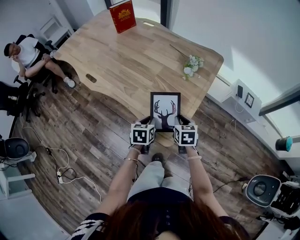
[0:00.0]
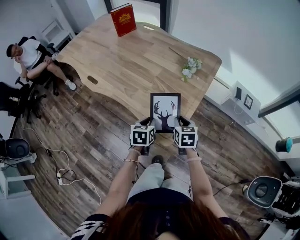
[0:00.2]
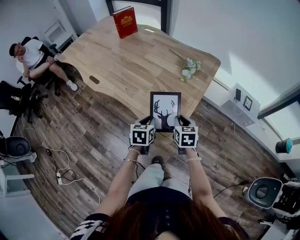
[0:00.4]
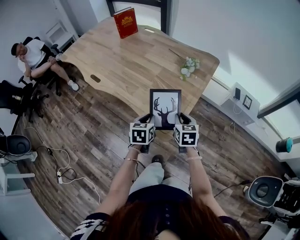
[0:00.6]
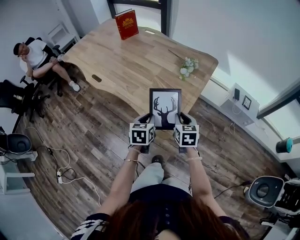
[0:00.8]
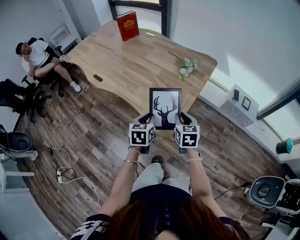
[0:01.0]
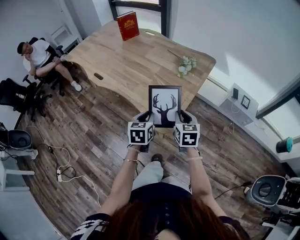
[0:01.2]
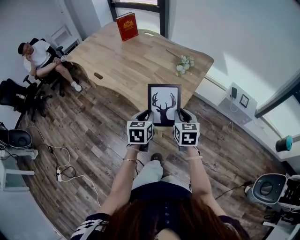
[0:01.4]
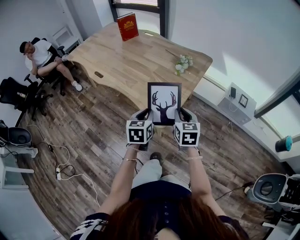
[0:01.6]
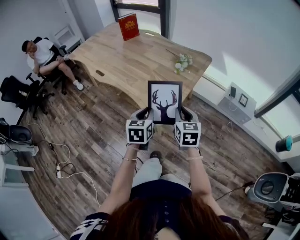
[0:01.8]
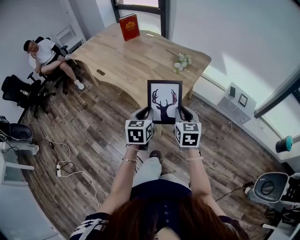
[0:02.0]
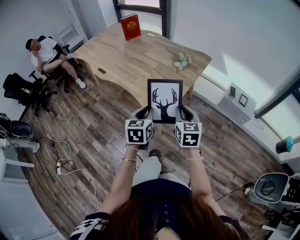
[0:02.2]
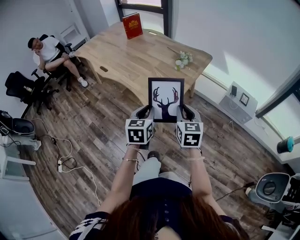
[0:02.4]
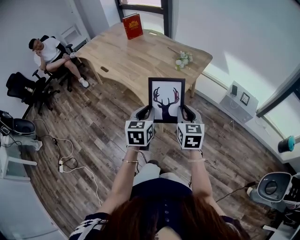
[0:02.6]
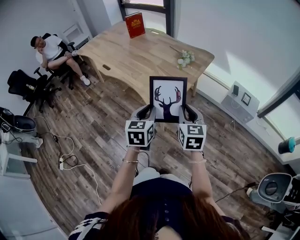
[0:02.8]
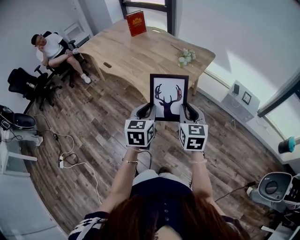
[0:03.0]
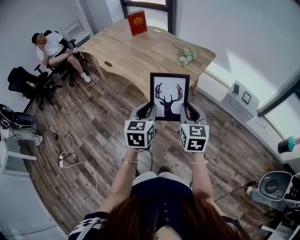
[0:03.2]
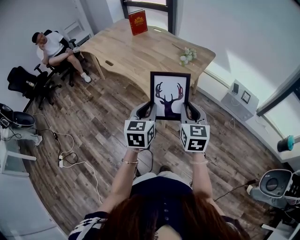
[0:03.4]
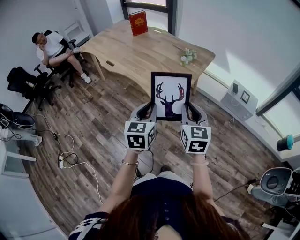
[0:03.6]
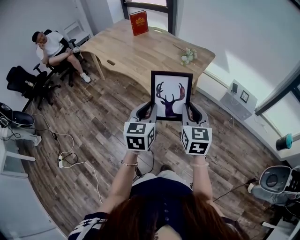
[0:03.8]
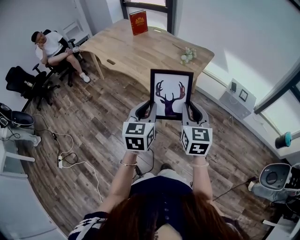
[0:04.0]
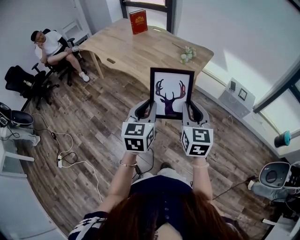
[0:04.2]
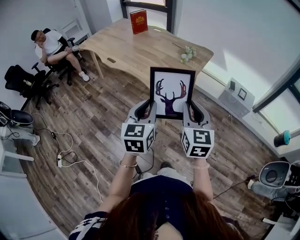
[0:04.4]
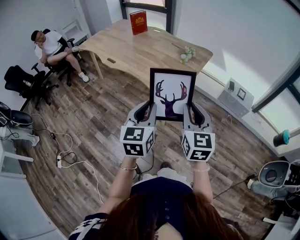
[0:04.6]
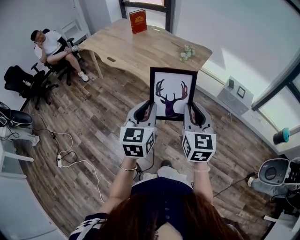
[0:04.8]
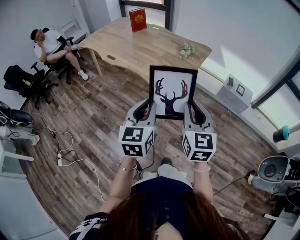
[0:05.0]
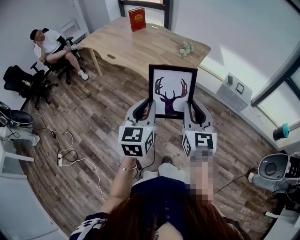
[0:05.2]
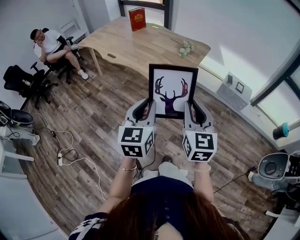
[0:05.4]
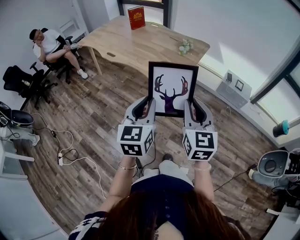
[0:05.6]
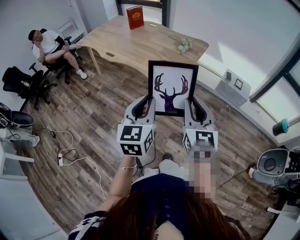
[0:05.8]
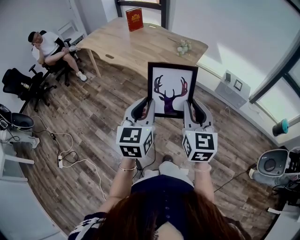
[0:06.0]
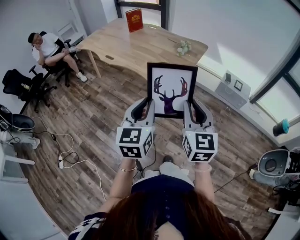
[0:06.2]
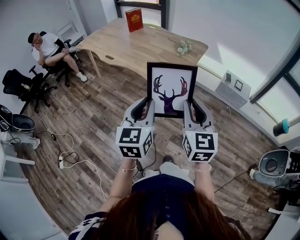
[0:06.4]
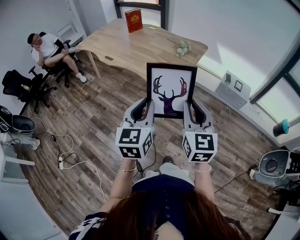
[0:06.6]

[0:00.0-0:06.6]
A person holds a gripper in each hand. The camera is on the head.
0:00.0 to 0:01.6: Both grippers travel together upward and backward, about 15 cm.
0:01.6 to 0:03.2: Both grippers move backward and upward, approximately 15 cm.
0:03.2 to 0:05.0: Both grippers travel together backward and upward, about 15 cm.
0:05.0 to 0:06.6: The grippers stay close to where they were, moving slightly.

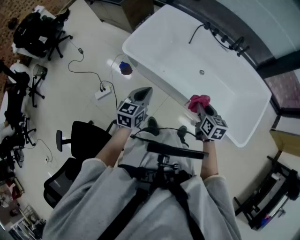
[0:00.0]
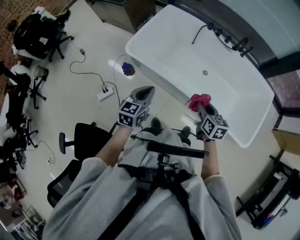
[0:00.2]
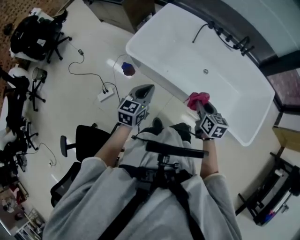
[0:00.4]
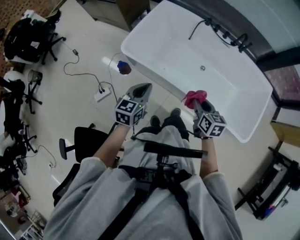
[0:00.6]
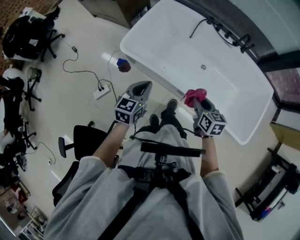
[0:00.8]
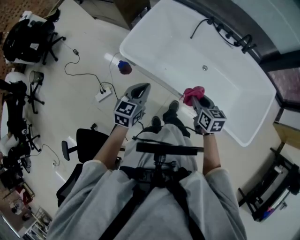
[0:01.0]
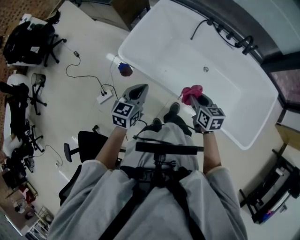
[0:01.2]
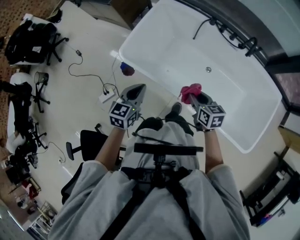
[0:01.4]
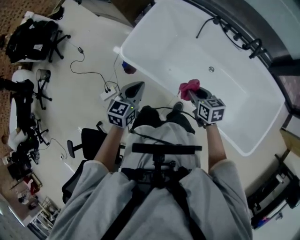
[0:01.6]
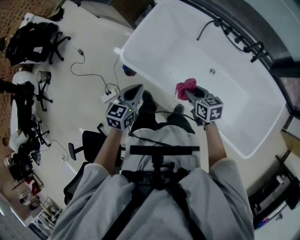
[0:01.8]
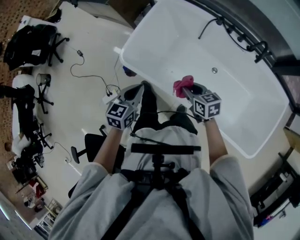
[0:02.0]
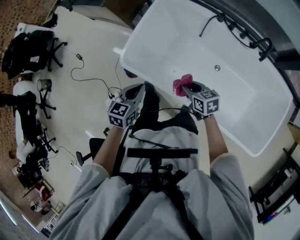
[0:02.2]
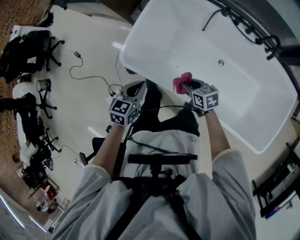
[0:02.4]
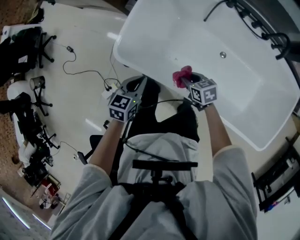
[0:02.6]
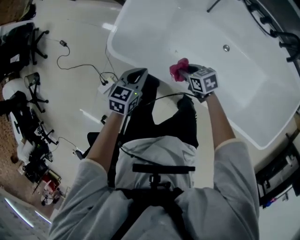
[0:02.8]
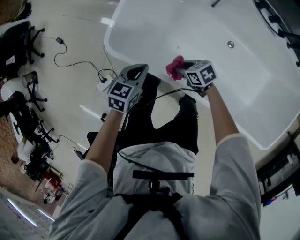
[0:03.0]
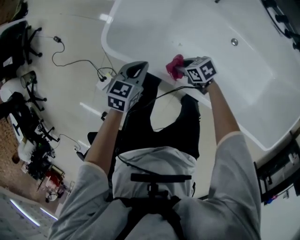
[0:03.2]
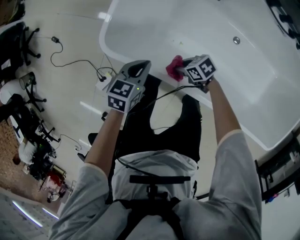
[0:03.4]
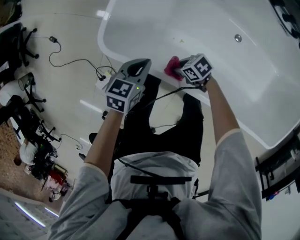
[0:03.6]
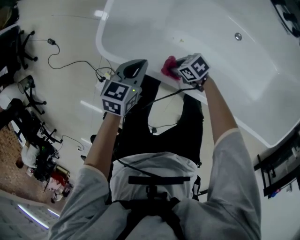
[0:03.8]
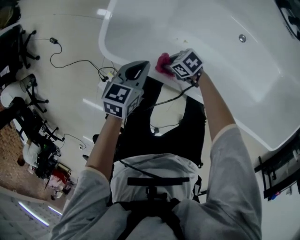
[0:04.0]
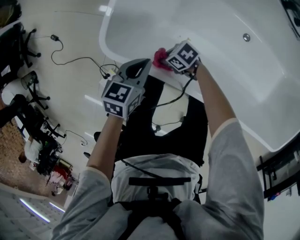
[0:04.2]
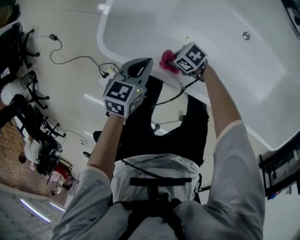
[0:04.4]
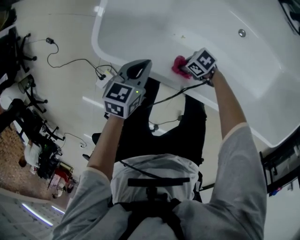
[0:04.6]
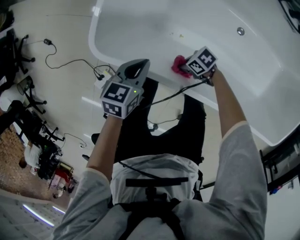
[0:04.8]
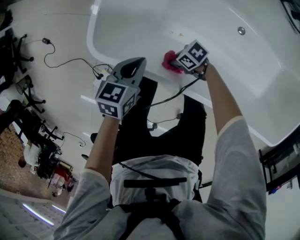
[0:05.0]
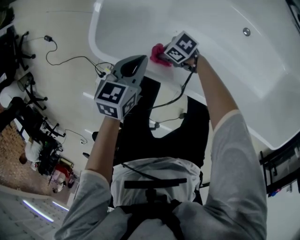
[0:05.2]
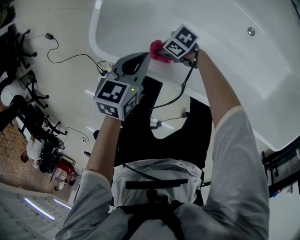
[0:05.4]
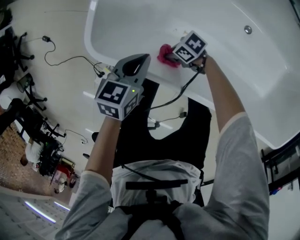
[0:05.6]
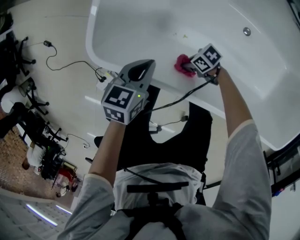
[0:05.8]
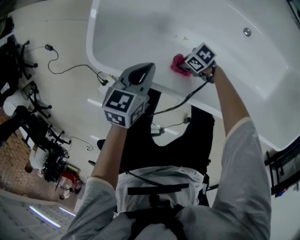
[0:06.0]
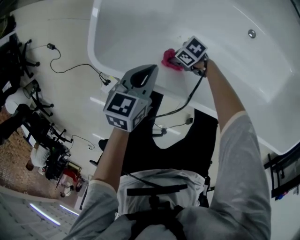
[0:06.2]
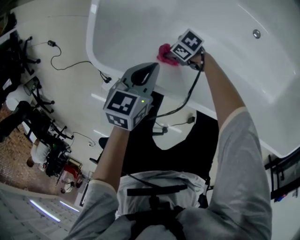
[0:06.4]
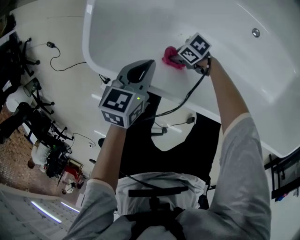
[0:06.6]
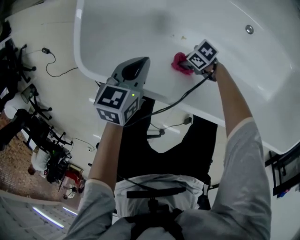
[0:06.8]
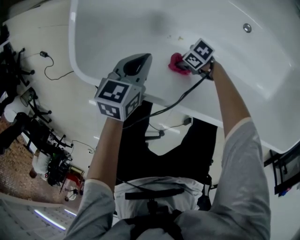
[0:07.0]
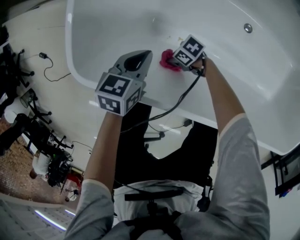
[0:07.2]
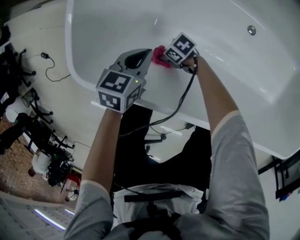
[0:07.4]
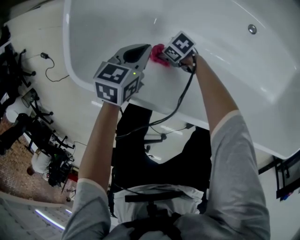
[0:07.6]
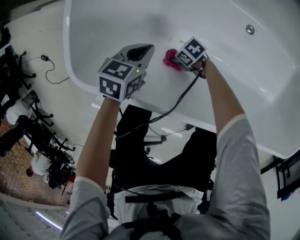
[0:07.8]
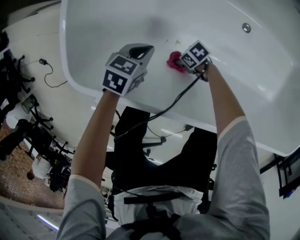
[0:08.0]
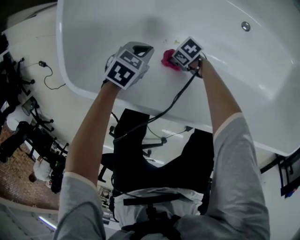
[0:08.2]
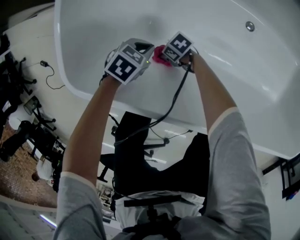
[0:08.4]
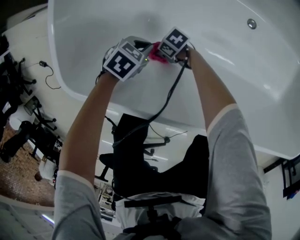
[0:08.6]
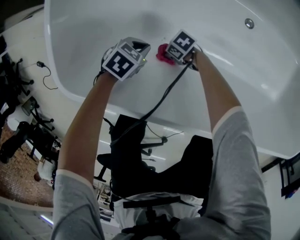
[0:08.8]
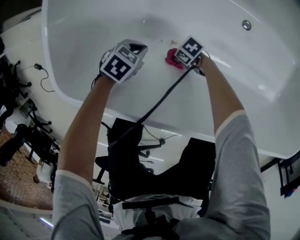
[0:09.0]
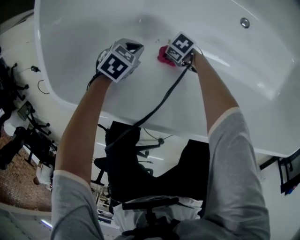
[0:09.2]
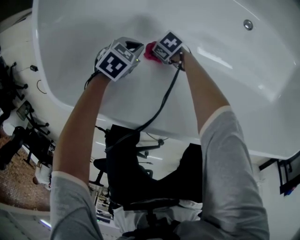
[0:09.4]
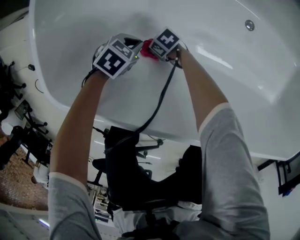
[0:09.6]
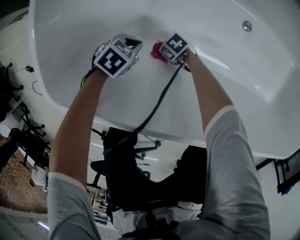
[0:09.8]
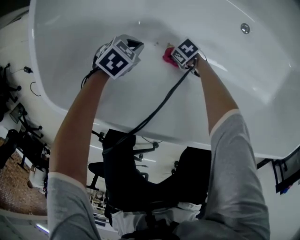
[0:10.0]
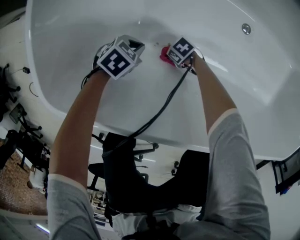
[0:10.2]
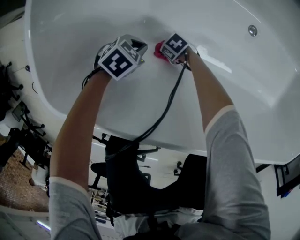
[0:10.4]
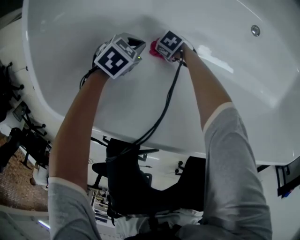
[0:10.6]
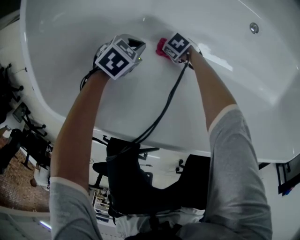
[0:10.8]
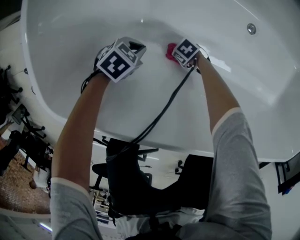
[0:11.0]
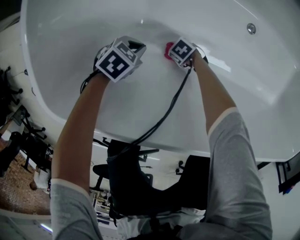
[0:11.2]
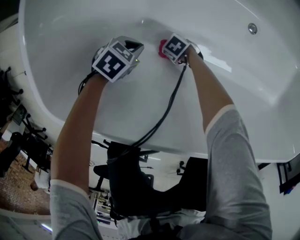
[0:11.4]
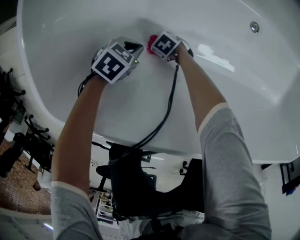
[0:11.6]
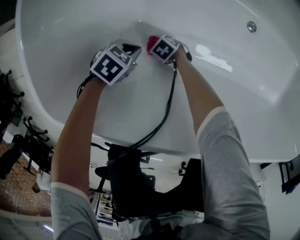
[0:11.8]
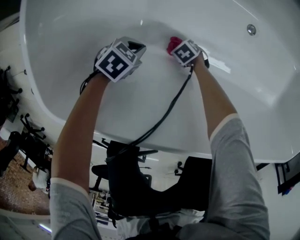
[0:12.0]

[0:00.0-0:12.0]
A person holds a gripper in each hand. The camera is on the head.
0:00.0 to 0:01.6: Both grippers travel together forward, some 20 cm. The right gripper rotates about 20 degrees.
0:01.6 to 0:03.0: The two grippers go some 25 cm downward. The left gripper rotates roughly 20 degrees, while the right gripper rotates about 30 degrees.
0:03.0 to 0:04.4: The right gripper heads downward, covering approximately 10 cm, and changes its angle by approximately 20 degrees. Meanwhile the left gripper moves some 5 cm.
0:04.4 to 0:06.0: The right gripper shifts about 10 cm downward.
0:06.0 to 0:07.6: The grippers both shift downward by approximately 10 cm.
0:07.6 to 0:09.0: The left gripper goes about 15 cm downward, and rotates approximately 30 degrees, while the right gripper shifts by some 15 cm.
0:09.0 to 0:10.4: The left gripper moves downward, some 5 cm; the right gripper moves left and right over some 10 cm, changing direction 2 times.
0:10.4 to 0:12.0: The right gripper ends up approximately 10 cm from where it was, and swivels roughly 20 degrees.

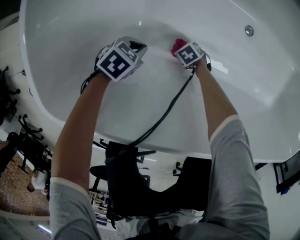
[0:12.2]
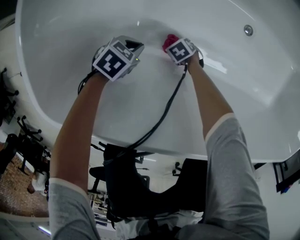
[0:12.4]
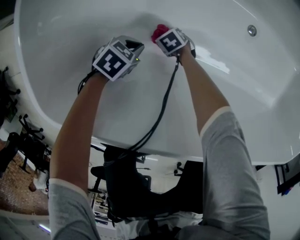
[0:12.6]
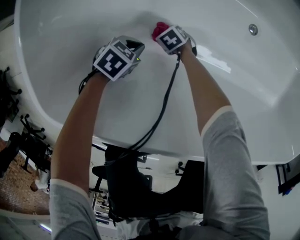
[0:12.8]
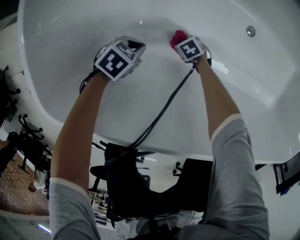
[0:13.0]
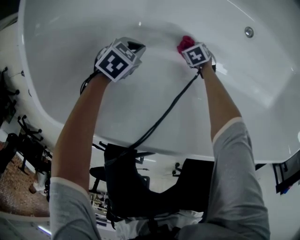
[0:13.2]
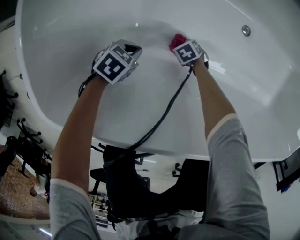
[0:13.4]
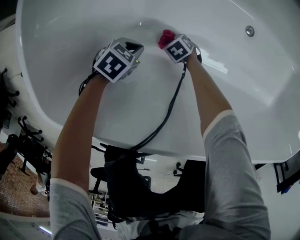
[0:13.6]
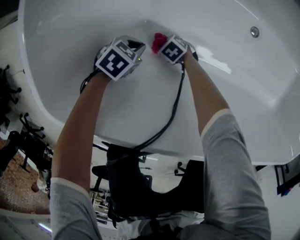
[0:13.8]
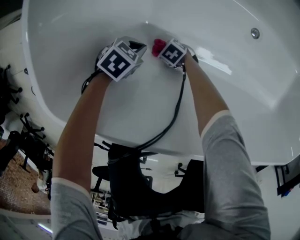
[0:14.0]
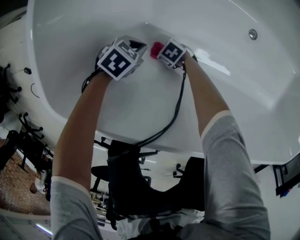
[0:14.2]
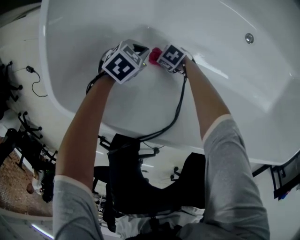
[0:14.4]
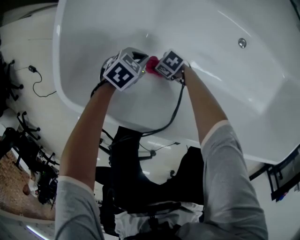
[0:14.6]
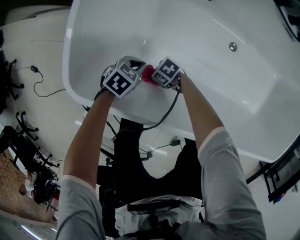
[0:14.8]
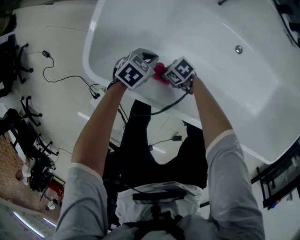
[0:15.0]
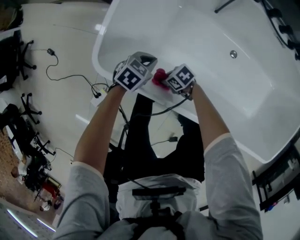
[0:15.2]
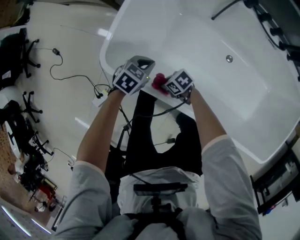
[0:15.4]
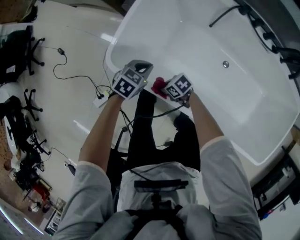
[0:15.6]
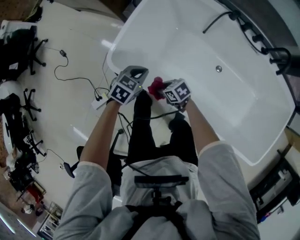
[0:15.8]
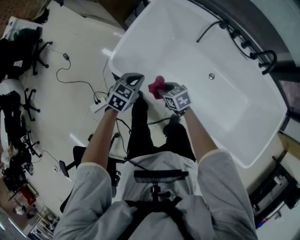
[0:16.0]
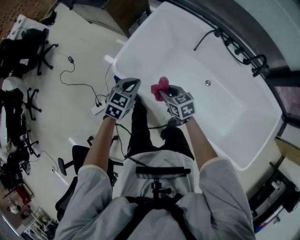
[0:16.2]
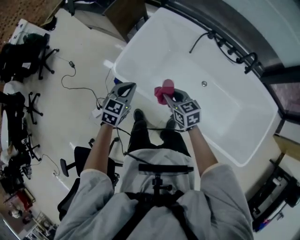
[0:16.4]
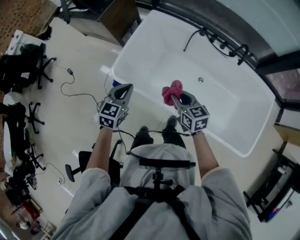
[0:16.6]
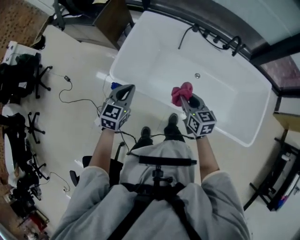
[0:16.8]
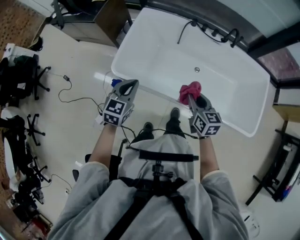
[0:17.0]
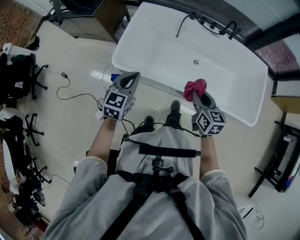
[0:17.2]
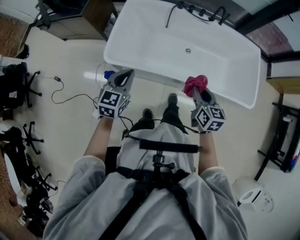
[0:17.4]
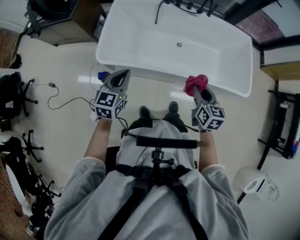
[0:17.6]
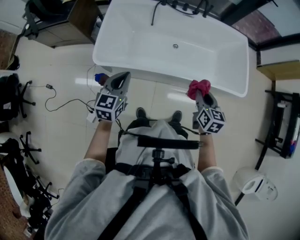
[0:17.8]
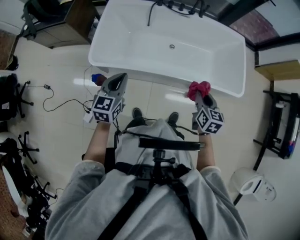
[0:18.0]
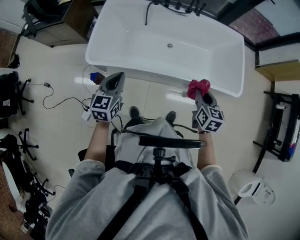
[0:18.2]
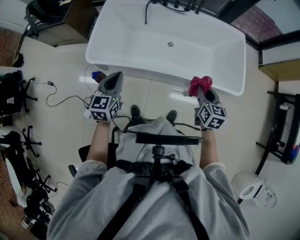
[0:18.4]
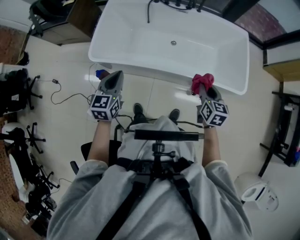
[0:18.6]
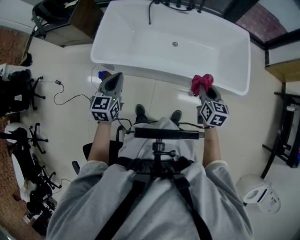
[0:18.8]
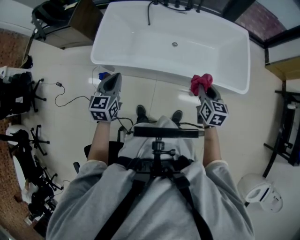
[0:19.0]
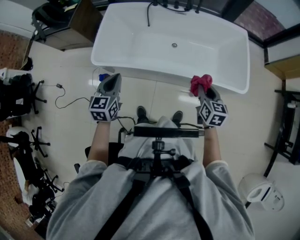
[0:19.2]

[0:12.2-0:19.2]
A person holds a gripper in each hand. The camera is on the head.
0:12.2 to 0:13.6: The right gripper shifts by roughly 5 cm.
0:13.6 to 0:15.0: Both grippers travel together upward, some 20 cm. The right gripper swivels roughly 30 degrees.
0:15.0 to 0:16.4: Both grippers move upward, about 40 cm. The right gripper turns by approximately 50 degrees; the left gripper changes its angle by some 40 degrees.
0:16.4 to 0:17.8: The right gripper shifts by roughly 35 cm, and rotates some 60 degrees, while the left gripper changes place by about 20 cm, and changes its angle by roughly 20 degrees.
0:17.8 to 0:19.2: Both grippers travel together to the right, some 10 cm.
